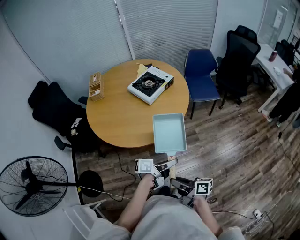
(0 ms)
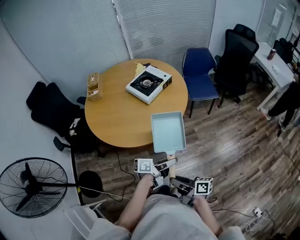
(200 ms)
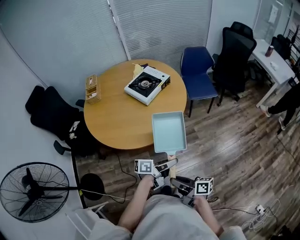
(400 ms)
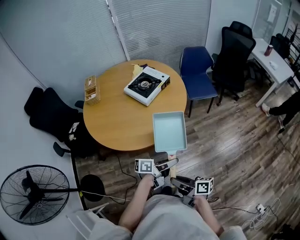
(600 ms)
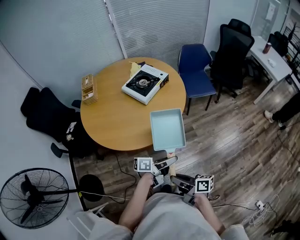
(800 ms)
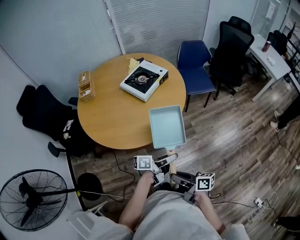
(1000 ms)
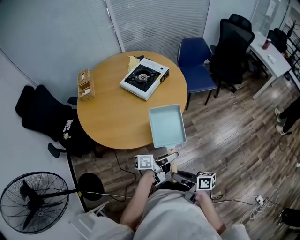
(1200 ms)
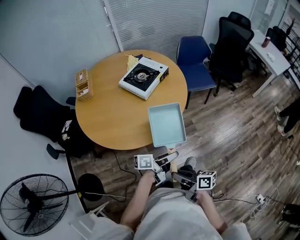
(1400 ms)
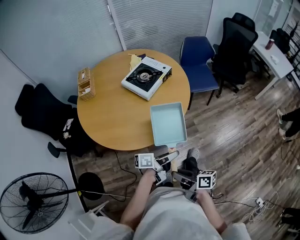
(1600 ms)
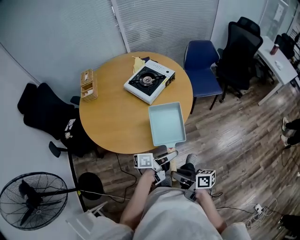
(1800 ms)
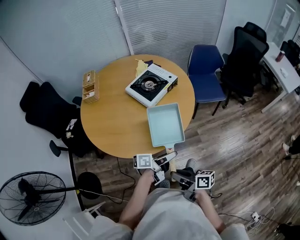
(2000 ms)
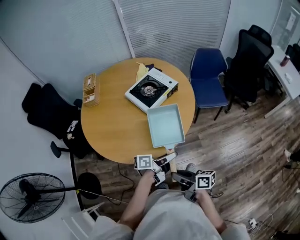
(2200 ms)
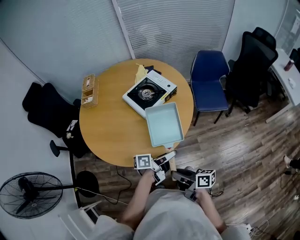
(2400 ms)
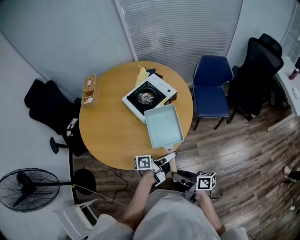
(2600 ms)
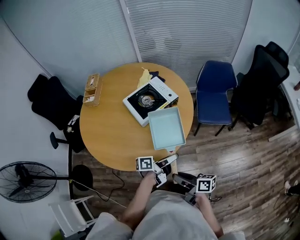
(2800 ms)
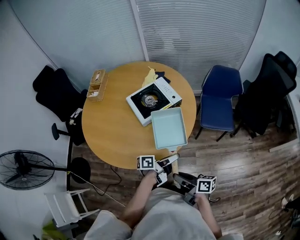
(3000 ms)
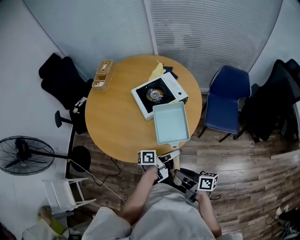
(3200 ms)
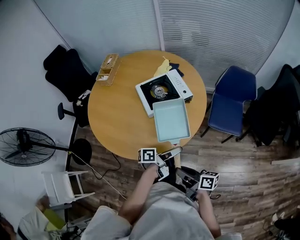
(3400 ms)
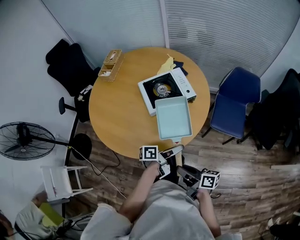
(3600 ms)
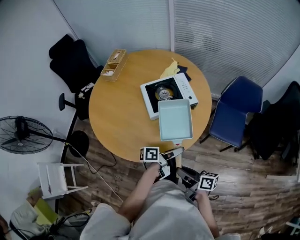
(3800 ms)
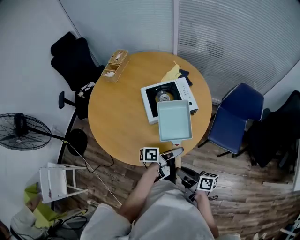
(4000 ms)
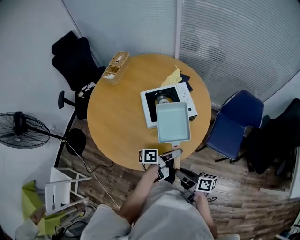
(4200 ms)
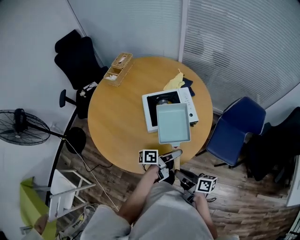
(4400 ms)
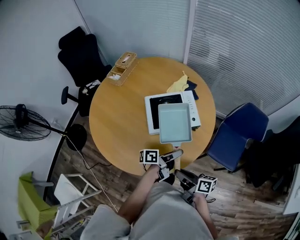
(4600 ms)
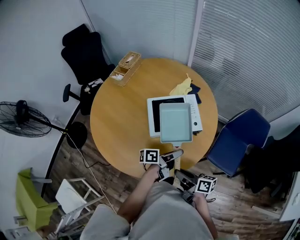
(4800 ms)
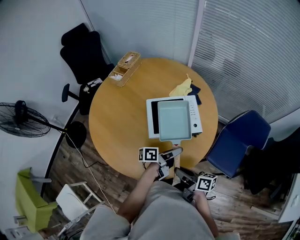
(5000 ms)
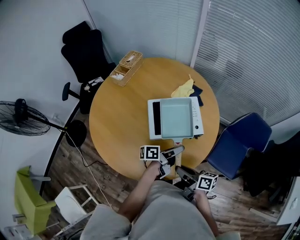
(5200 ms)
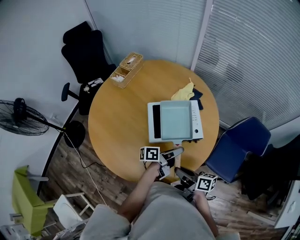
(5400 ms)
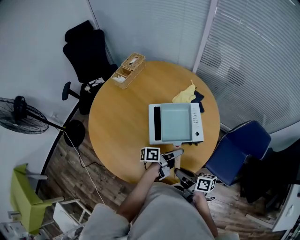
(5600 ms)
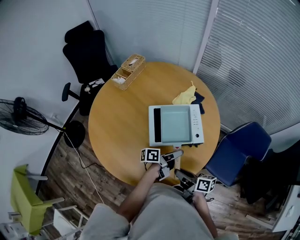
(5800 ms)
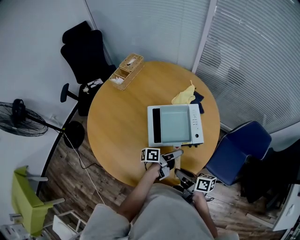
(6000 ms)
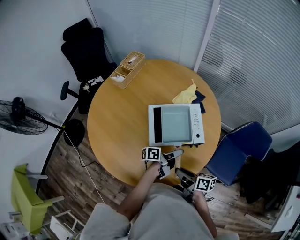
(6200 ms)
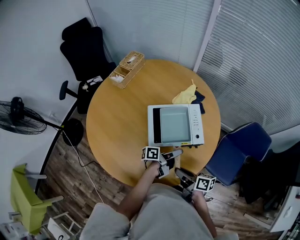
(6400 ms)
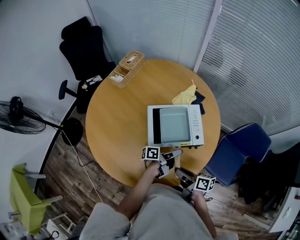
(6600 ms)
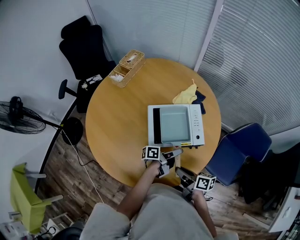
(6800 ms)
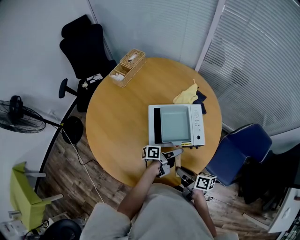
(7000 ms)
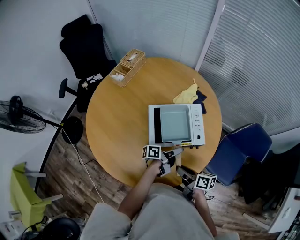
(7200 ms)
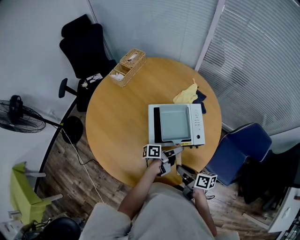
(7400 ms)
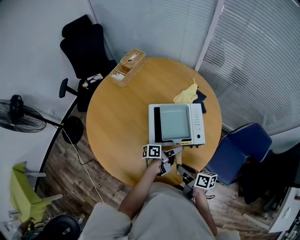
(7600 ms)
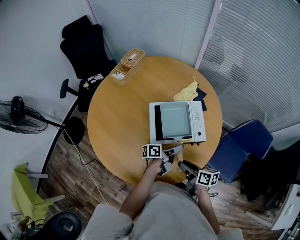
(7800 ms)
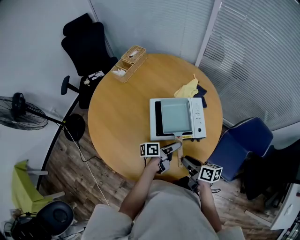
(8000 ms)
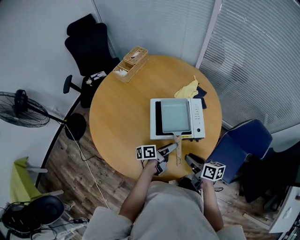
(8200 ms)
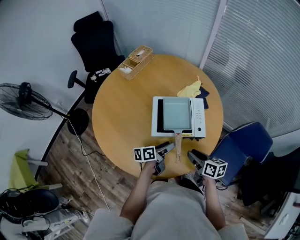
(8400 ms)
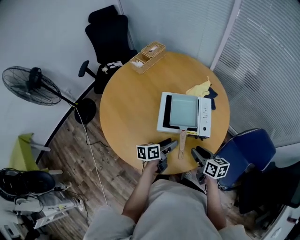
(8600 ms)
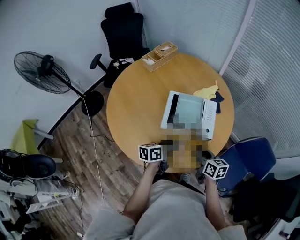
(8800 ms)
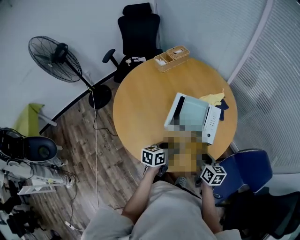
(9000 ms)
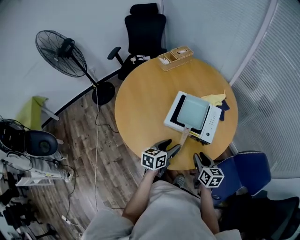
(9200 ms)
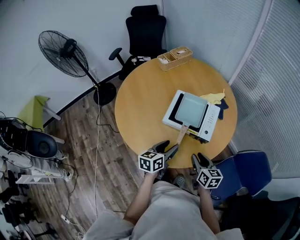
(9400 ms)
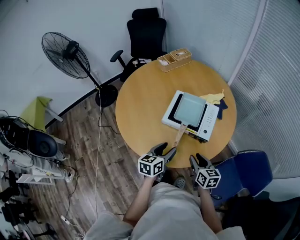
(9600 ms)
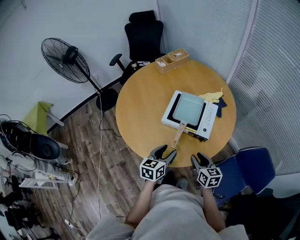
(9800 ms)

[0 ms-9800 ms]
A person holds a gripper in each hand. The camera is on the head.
0 ms to 1400 ms: The right gripper travels forward by some 5 cm, while the left gripper moves roughly 5 cm.
1400 ms to 2800 ms: Both grippers move forward and to the right, roughly 25 cm. The left gripper changes its angle by some 20 degrees.
2800 ms to 4200 ms: The left gripper heads forward, covering some 15 cm, and changes its angle by approximately 20 degrees. The right gripper shifts about 15 cm forward and to the right.
4200 ms to 5600 ms: Both grippers travel together forward, approximately 15 cm.
5600 ms to 7000 ms: The left gripper heads downward, covering some 5 cm. Meanwhile the right gripper ends up about 5 cm from where it was.
7000 ms to 8400 ms: The left gripper goes some 5 cm to the left, and rotates about 30 degrees. Meanwhile the right gripper shifts approximately 5 cm to the right, and rotates approximately 20 degrees.
8400 ms to 9800 ms: The right gripper heads to the right and backward, covering some 5 cm, and changes its angle by about 30 degrees, while the left gripper is displaced backward and upward by roughly 15 cm, and rotates roughly 50 degrees.

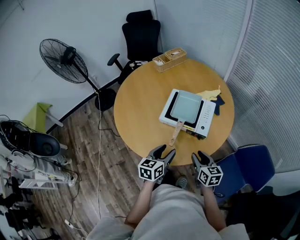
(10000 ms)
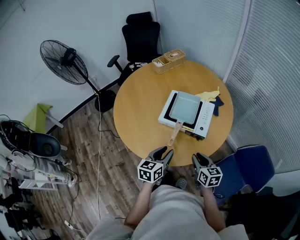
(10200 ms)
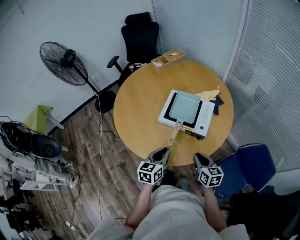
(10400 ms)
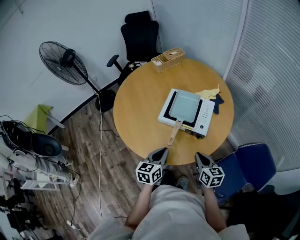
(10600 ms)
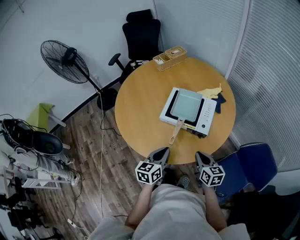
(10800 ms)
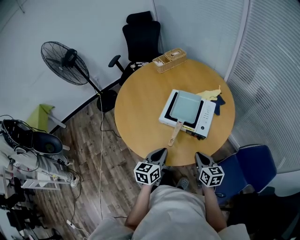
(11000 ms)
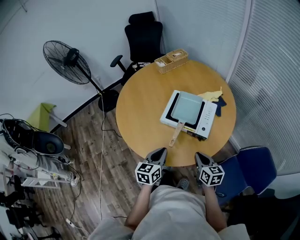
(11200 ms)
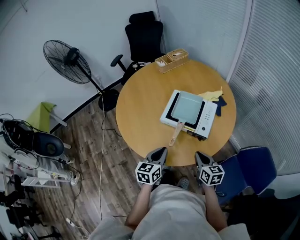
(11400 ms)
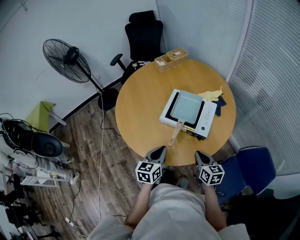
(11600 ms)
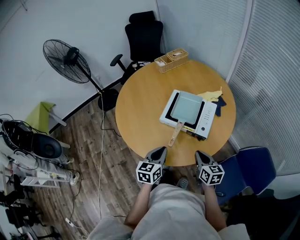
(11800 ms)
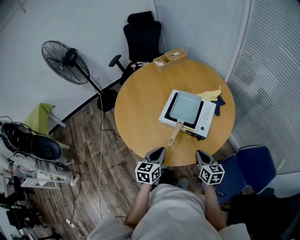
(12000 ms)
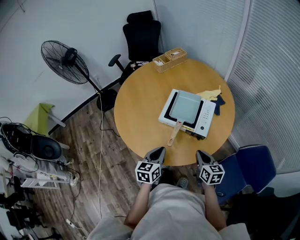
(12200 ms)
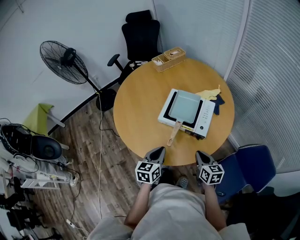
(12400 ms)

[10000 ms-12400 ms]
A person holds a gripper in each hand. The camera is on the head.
10000 ms to 11200 ms: The right gripper closes its fingers. The left gripper closes up.
11200 ms to 12400 ms: Both grippers stay put.

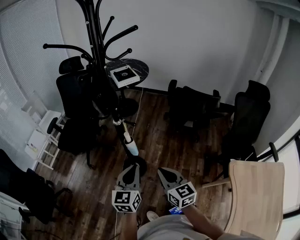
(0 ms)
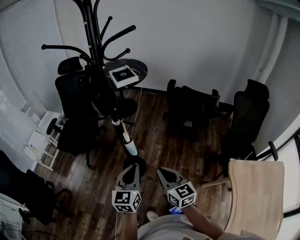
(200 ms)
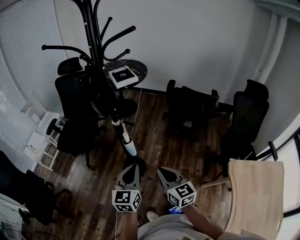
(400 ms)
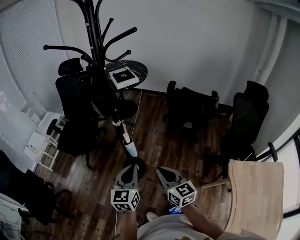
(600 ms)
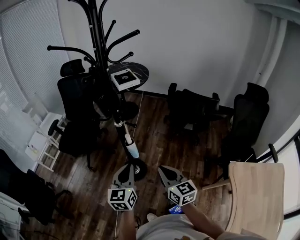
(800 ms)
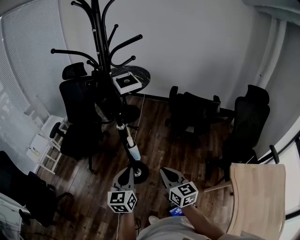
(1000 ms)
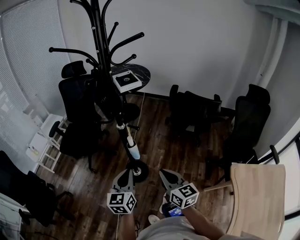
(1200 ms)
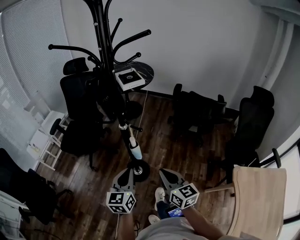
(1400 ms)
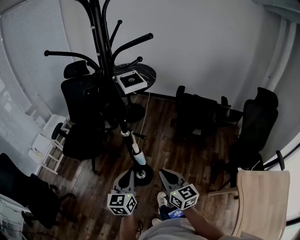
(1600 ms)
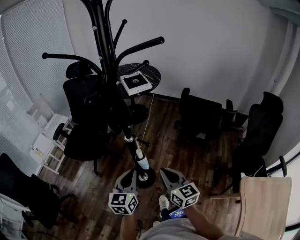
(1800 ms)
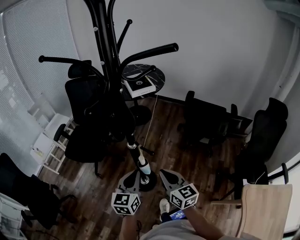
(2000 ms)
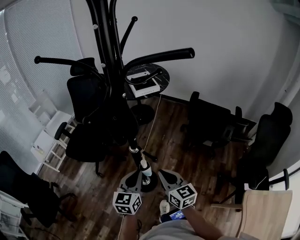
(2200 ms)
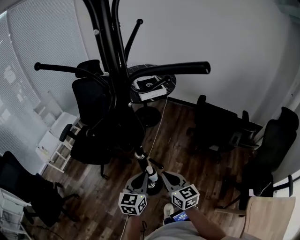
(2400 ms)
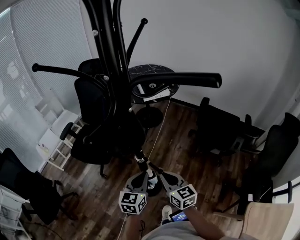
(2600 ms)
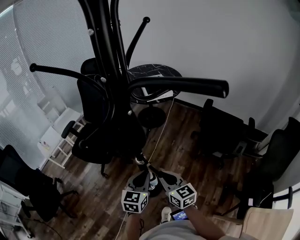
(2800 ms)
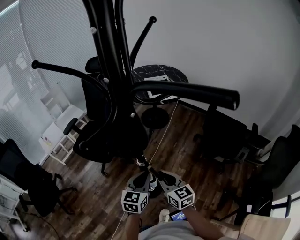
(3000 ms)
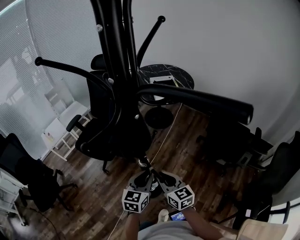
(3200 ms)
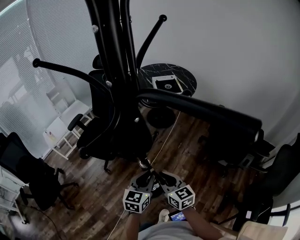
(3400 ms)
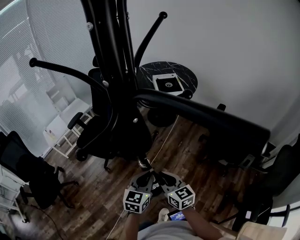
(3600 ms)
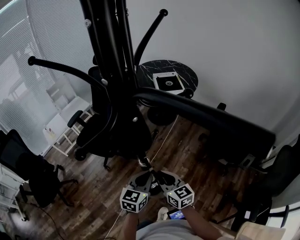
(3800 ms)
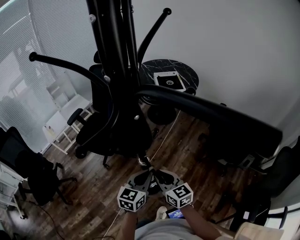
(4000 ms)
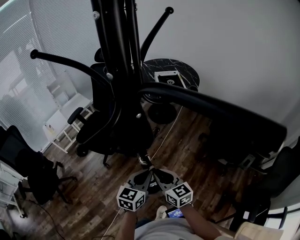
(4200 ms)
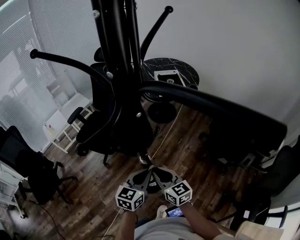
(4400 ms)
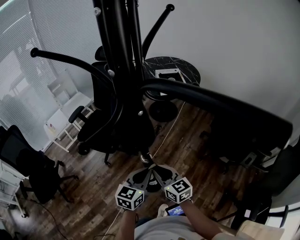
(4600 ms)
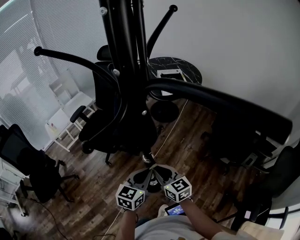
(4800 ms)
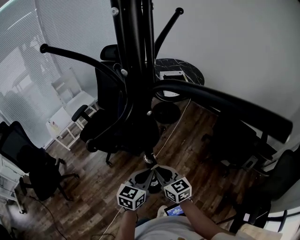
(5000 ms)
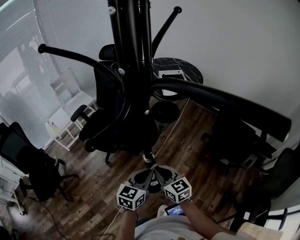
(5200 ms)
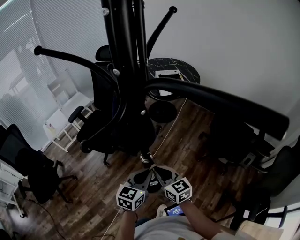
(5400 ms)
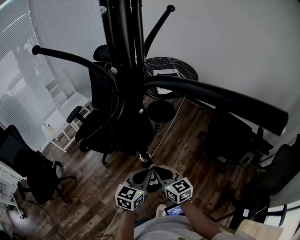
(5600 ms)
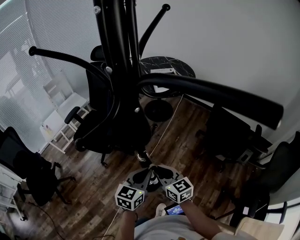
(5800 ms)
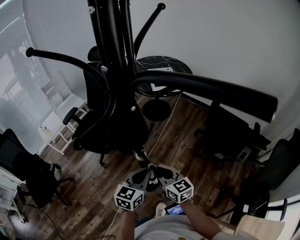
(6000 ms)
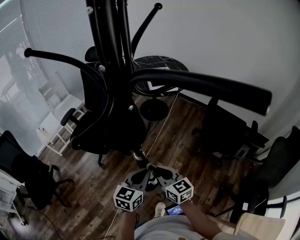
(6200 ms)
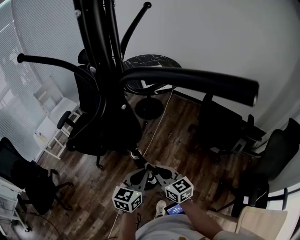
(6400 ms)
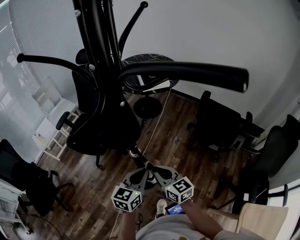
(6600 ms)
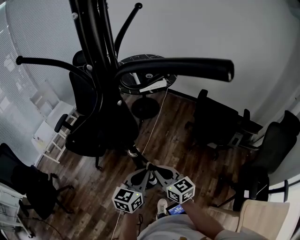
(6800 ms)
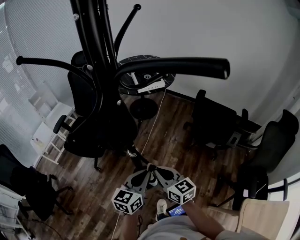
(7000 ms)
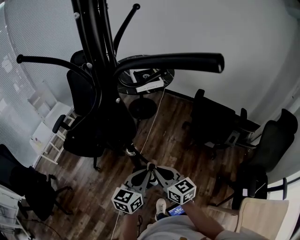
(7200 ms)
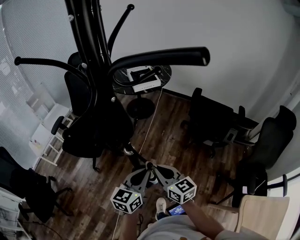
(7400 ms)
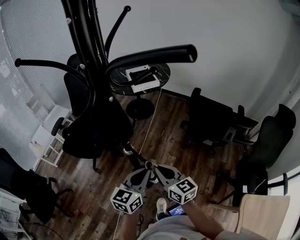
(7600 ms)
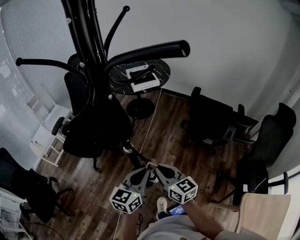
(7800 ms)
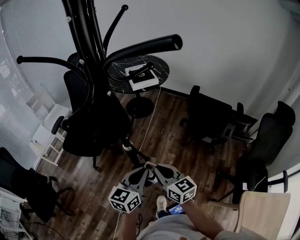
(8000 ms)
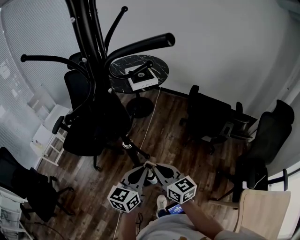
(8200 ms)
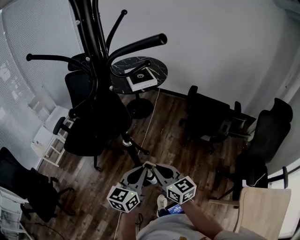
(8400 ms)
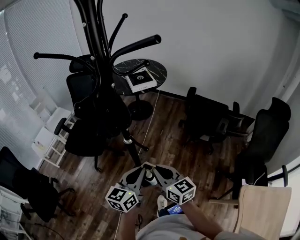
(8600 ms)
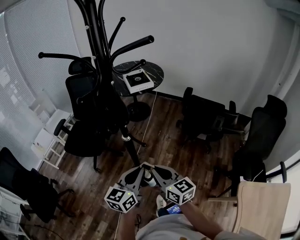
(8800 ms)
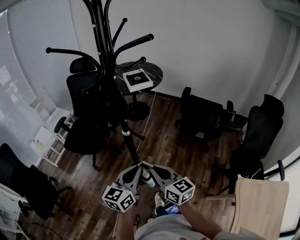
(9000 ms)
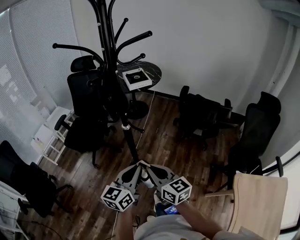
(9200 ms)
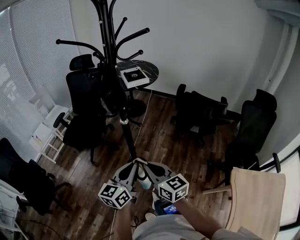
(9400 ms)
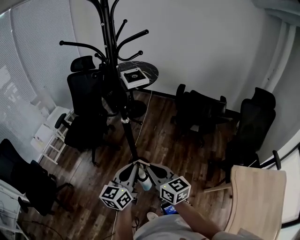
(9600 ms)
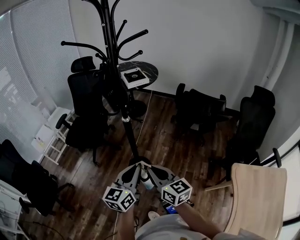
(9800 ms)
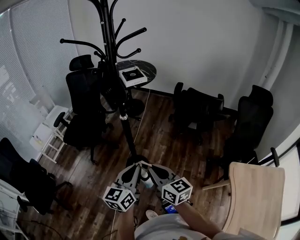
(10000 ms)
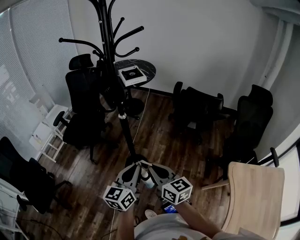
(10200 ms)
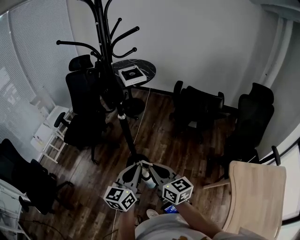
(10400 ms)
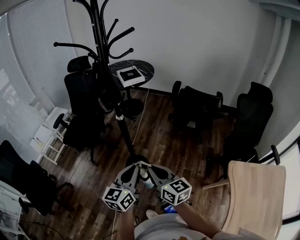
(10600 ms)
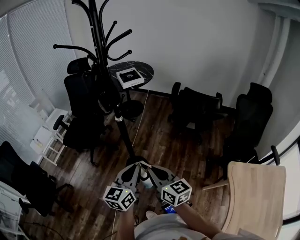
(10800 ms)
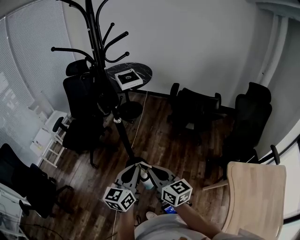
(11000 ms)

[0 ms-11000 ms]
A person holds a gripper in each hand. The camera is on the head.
0 ms to 1600 ms: The right gripper goes roughly 5 cm forward. The left gripper shifts about 10 cm forward and to the left.
1600 ms to 3200 ms: Both grippers move forward, about 20 cm. The right gripper swivels roughly 20 degrees.
3200 ms to 6200 ms: The grippers make only small movements.
6200 ms to 7800 ms: Both grippers travel together backward, approximately 5 cm.
7800 ms to 9400 ms: Both grippers move backward, roughly 20 cm.
9400 ms to 11000 ms: The left gripper moves about 5 cm. Meanwhile the right gripper goes about 10 cm backward and to the right.
